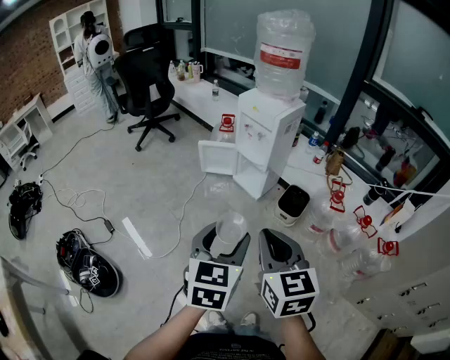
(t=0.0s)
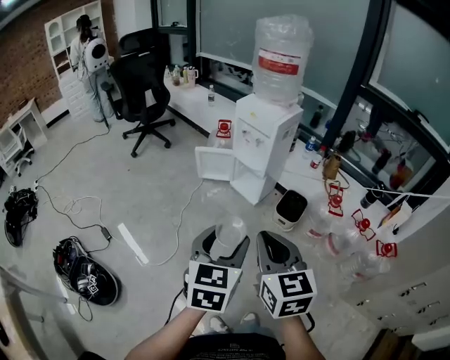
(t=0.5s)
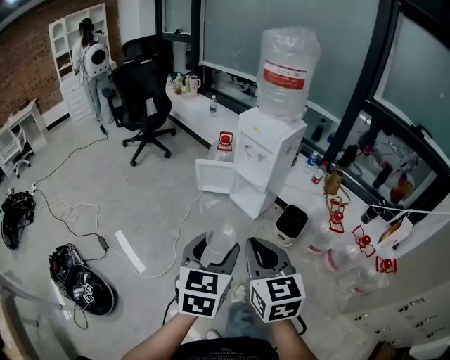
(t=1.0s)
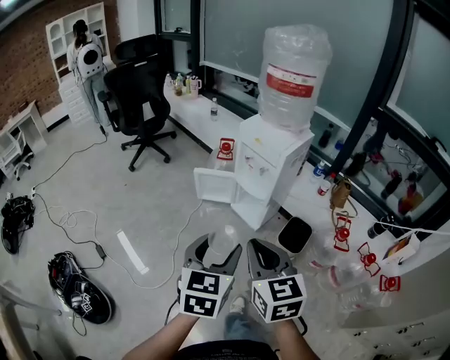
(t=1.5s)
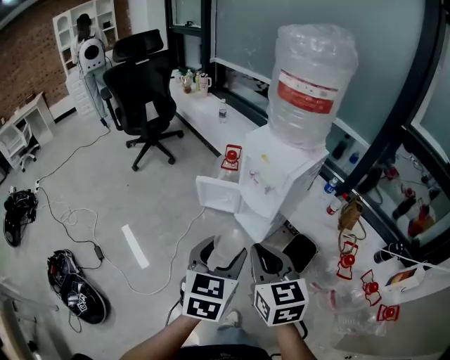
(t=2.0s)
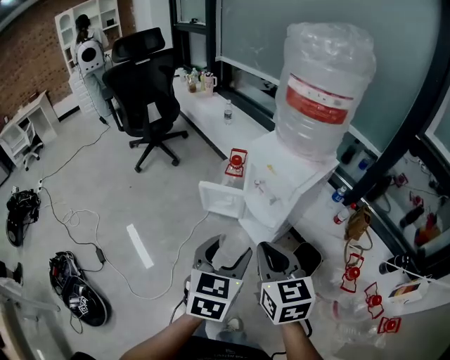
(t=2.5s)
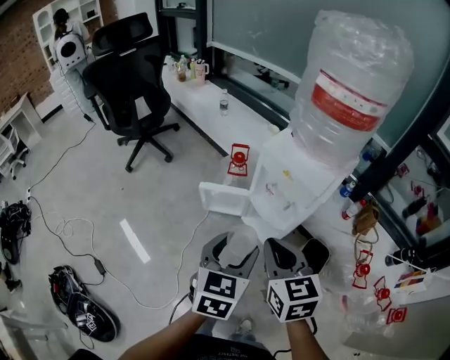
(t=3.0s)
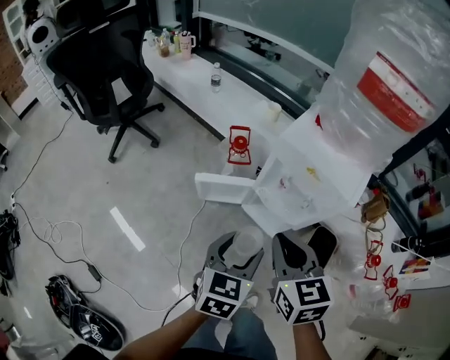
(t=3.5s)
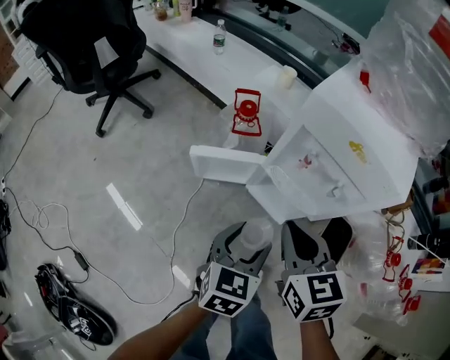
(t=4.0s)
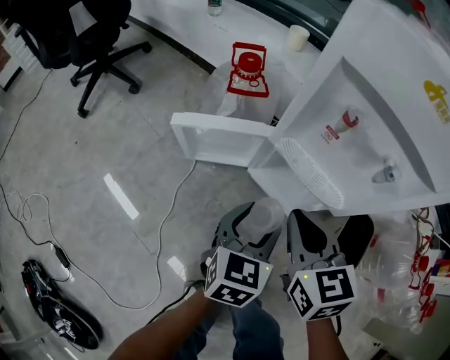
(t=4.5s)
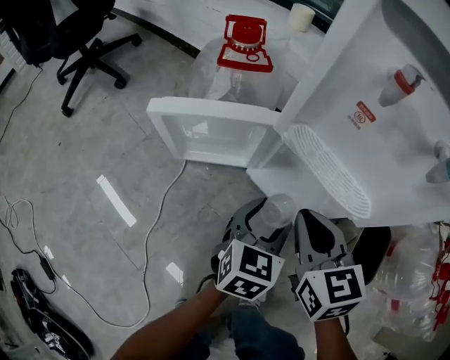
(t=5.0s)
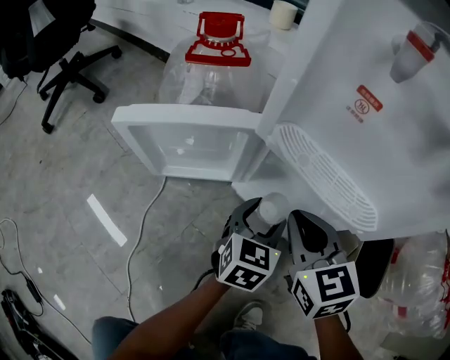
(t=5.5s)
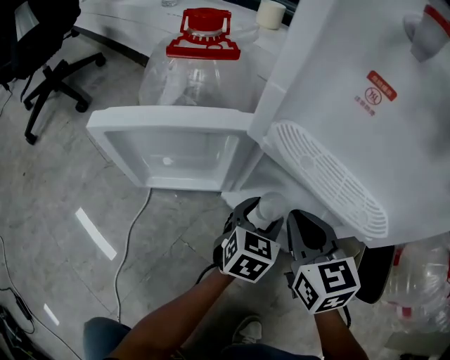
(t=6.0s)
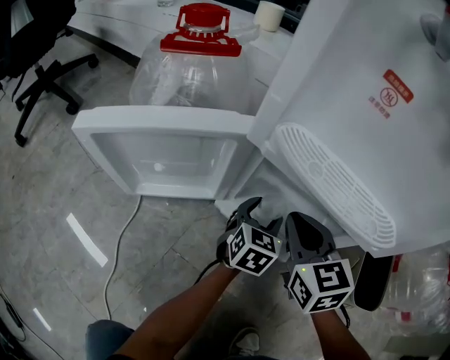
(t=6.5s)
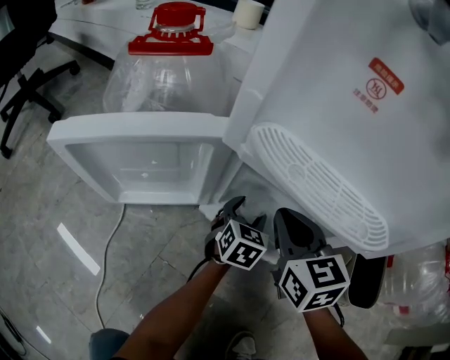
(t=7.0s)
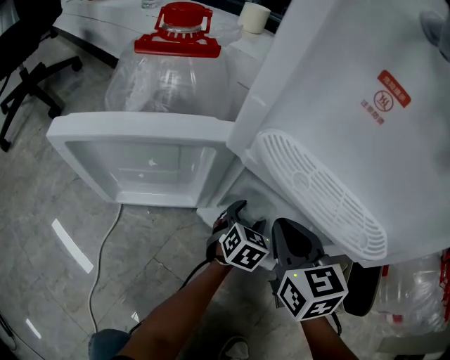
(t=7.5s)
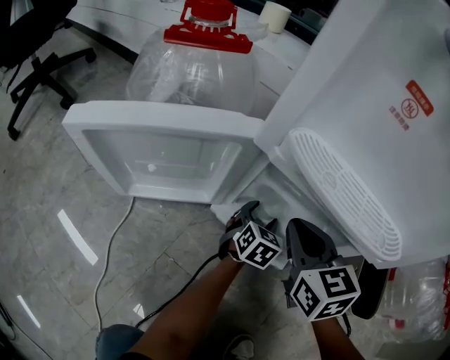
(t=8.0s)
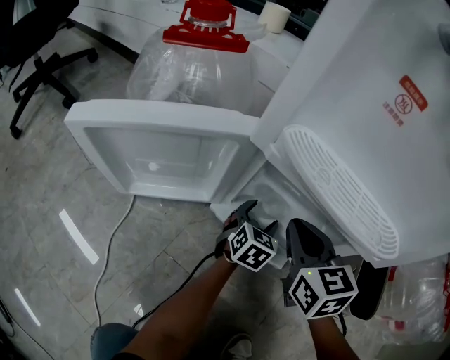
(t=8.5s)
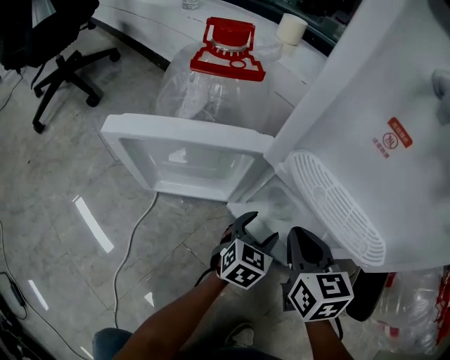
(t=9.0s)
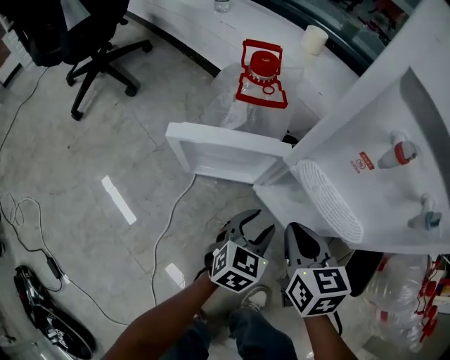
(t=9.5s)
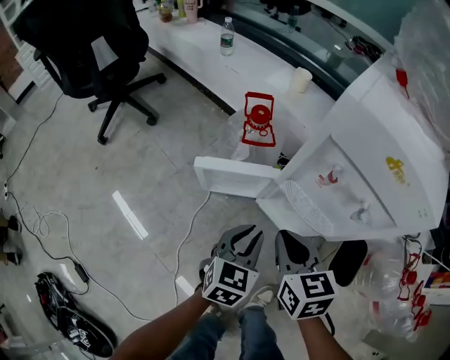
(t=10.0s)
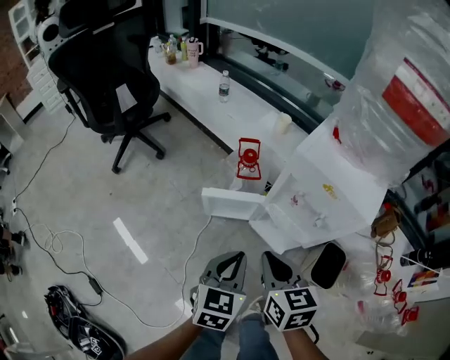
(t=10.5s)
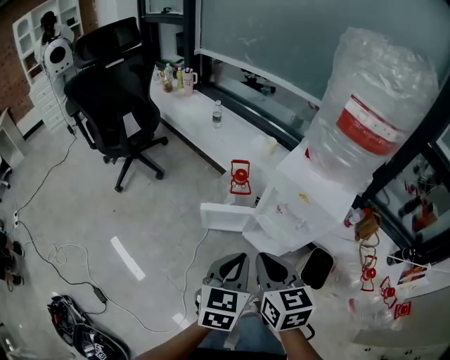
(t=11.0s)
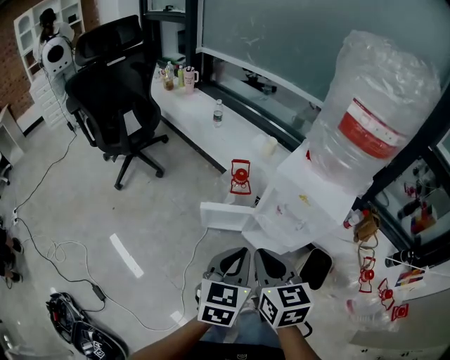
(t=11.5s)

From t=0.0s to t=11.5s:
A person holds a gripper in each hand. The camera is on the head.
From t=0.0s to t=2.0s: The grippers both shift forward by some 30 cm.
From t=2.0s to t=4.0s: The right gripper travels forward and downward by roughly 35 cm, while the left gripper moves downward and forward, approximately 40 cm, and rotates approximately 20 degrees.
From t=4.0s to t=6.0s: The right gripper goes roughly 40 cm downward; the left gripper moves downward and forward, some 50 cm.
From t=6.0s to t=7.5s: The left gripper moves downward and forward, roughly 10 cm.
From t=7.5s to t=9.5s: The left gripper moves upward, backward and to the left, some 30 cm. Meanwhile the right gripper is displaced upward, backward and to the left by approximately 20 cm.
From t=9.5s to t=11.5s: The grippers both shift upward by roughly 50 cm. The left gripper closes its fingers.

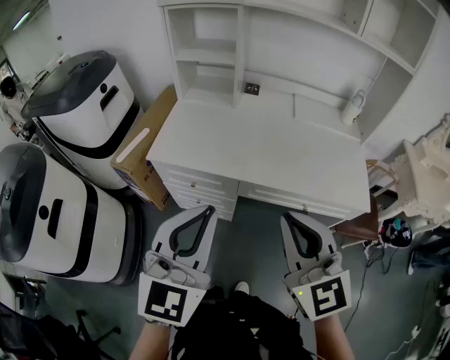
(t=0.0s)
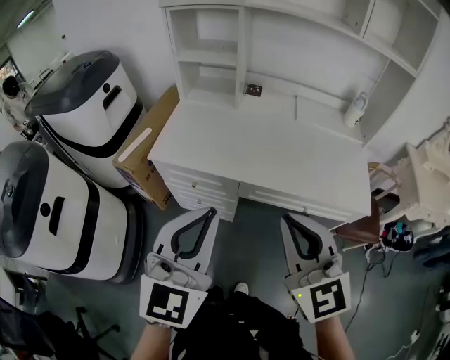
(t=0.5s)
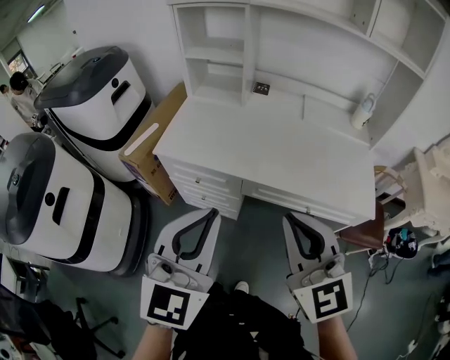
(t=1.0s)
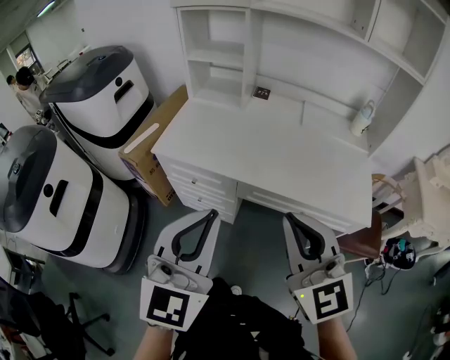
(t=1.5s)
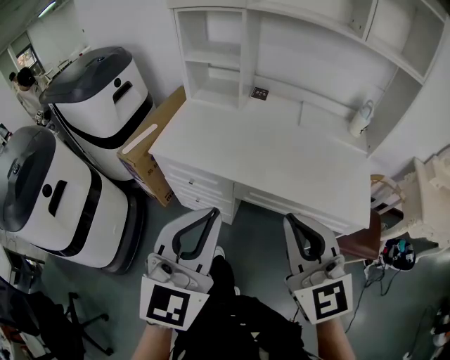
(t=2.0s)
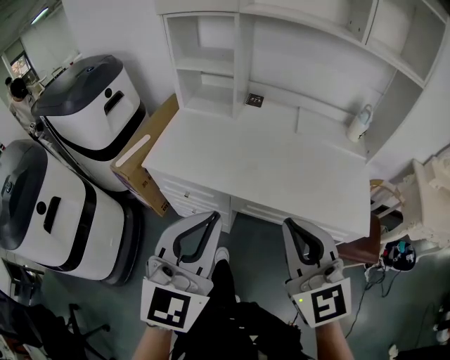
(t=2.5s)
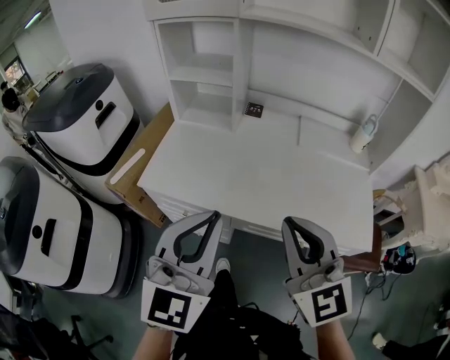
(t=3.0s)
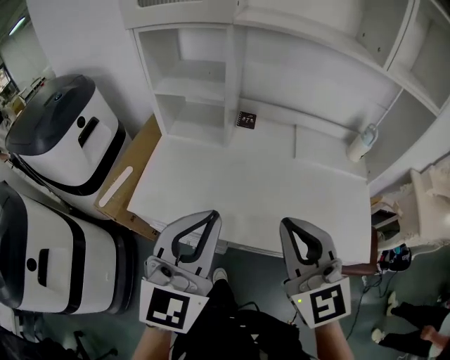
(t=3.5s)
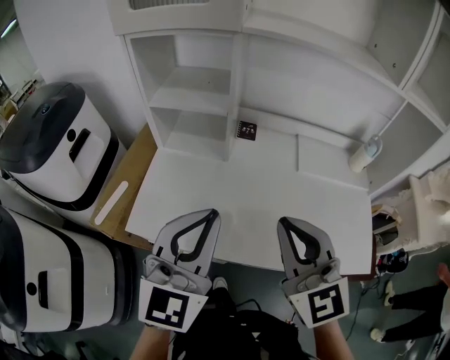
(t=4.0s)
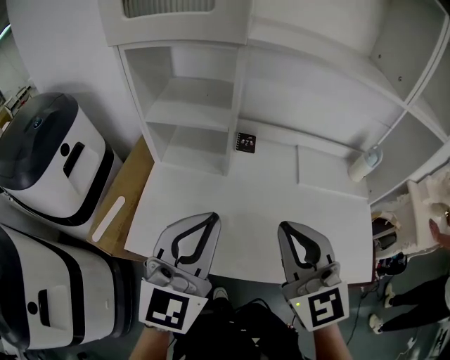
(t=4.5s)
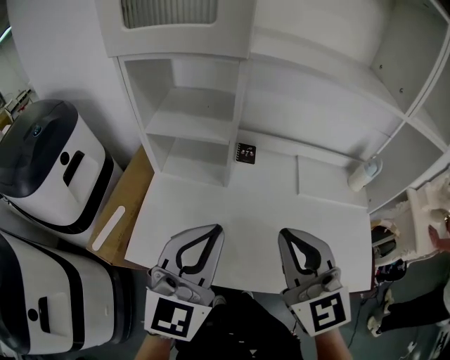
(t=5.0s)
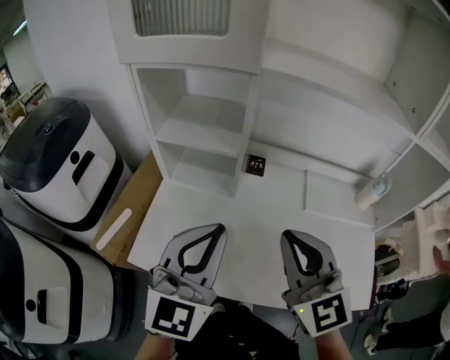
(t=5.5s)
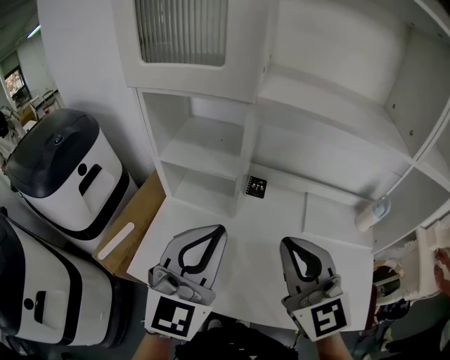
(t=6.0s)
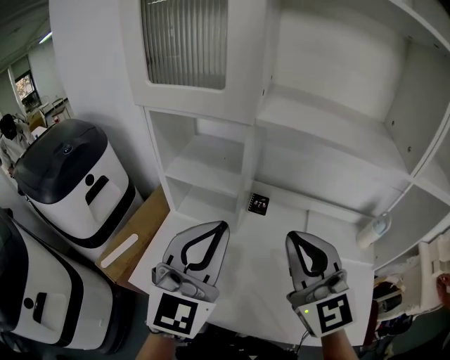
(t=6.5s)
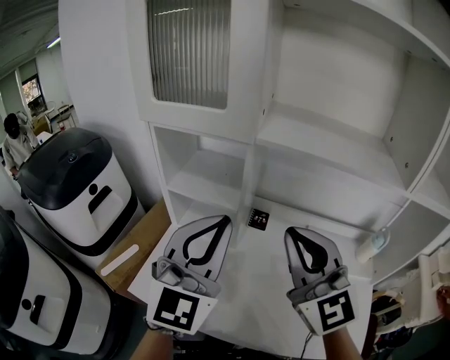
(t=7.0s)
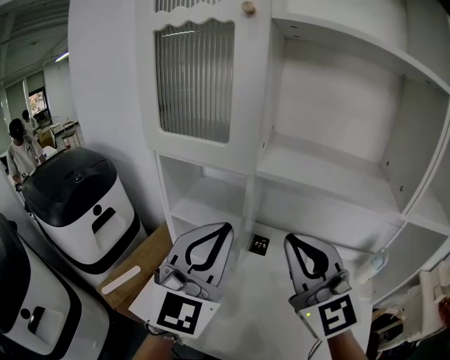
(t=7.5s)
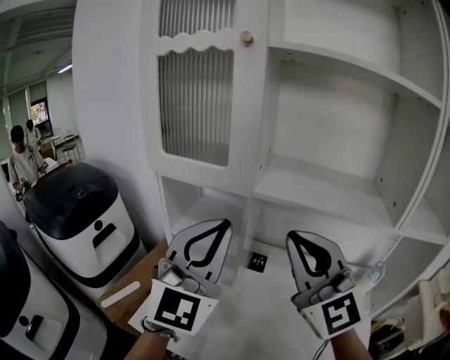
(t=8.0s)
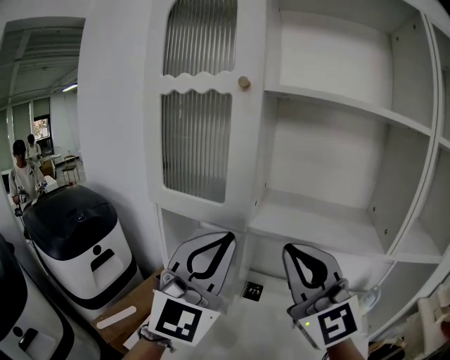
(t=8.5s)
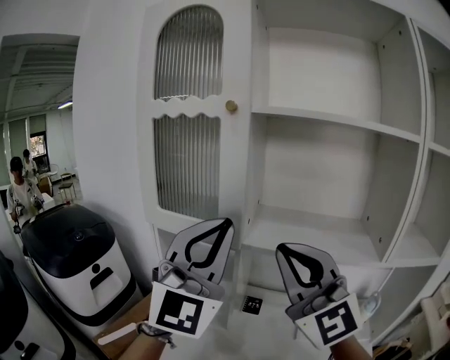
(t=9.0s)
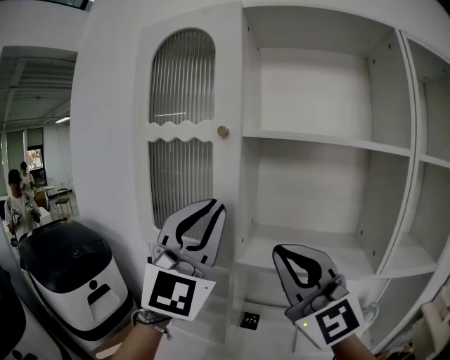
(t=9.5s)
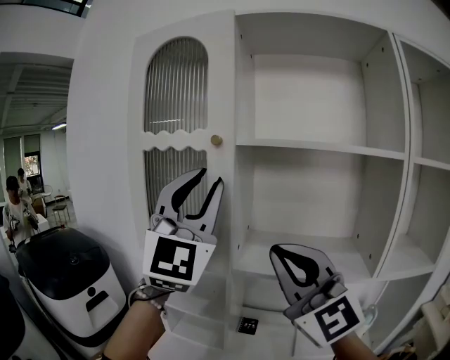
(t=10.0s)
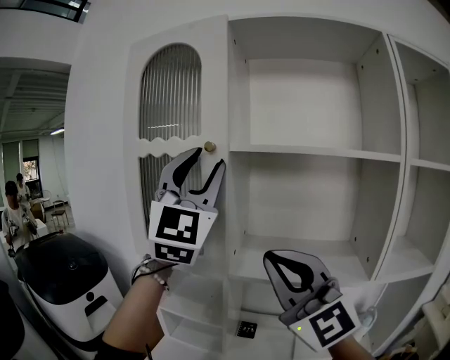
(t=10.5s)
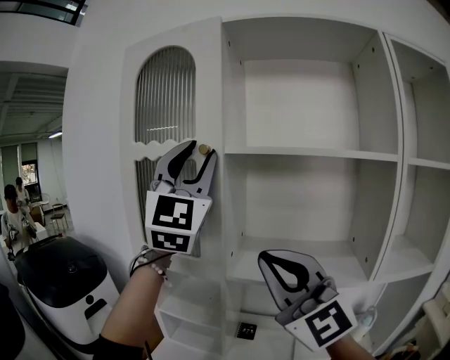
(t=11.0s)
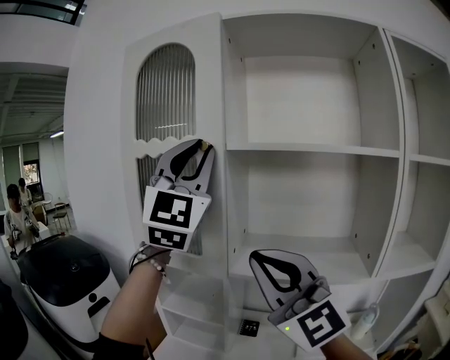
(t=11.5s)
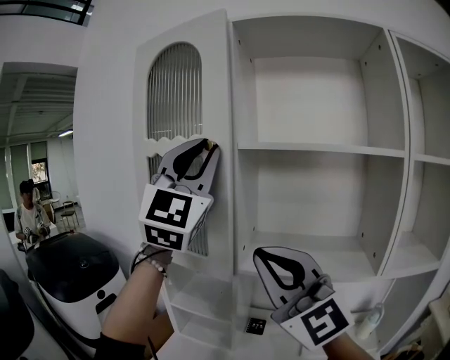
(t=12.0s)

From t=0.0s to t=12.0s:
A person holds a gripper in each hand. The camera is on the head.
From t=0.0s to t=2.0s: The two grippers go some 5 cm to the right.
From t=2.0s to t=4.0s: The grippers both shift forward by some 30 cm.
From t=4.0s to t=6.0s: Both grippers move forward, about 10 cm.
From t=6.0s to t=8.0s: The left gripper moves upward and forward, roughly 15 cm, while the right gripper goes approximately 15 cm upward, and rotates roughly 20 degrees.
From t=8.0s to t=10.0s: The left gripper goes about 25 cm upward, and opens its fingers, while the right gripper travels upward by roughly 10 cm.
From t=10.0s to t=12.0s: The left gripper goes about 5 cm upward.

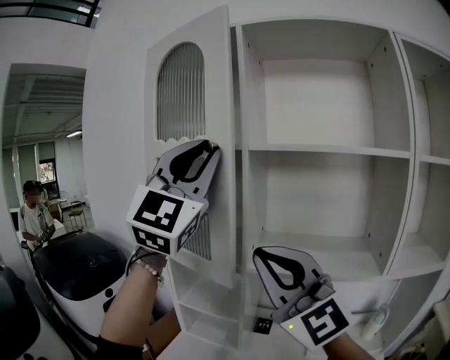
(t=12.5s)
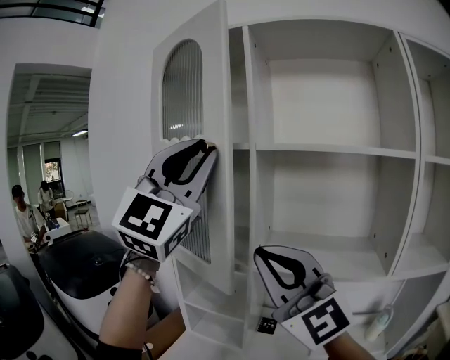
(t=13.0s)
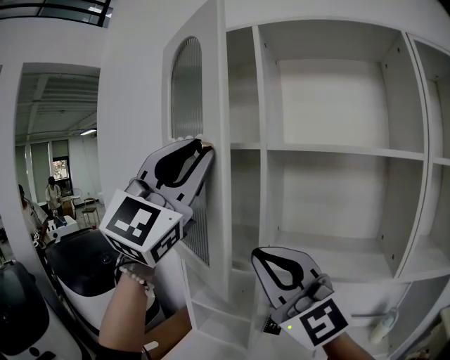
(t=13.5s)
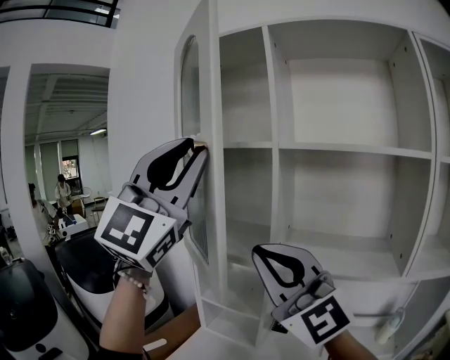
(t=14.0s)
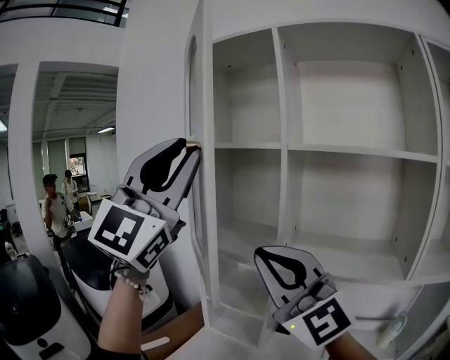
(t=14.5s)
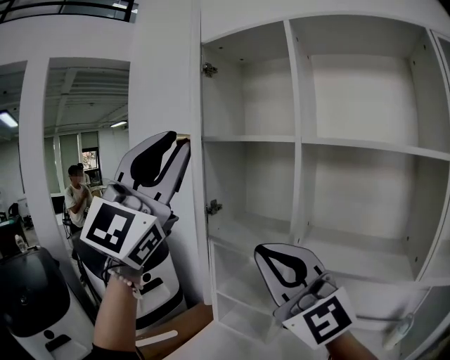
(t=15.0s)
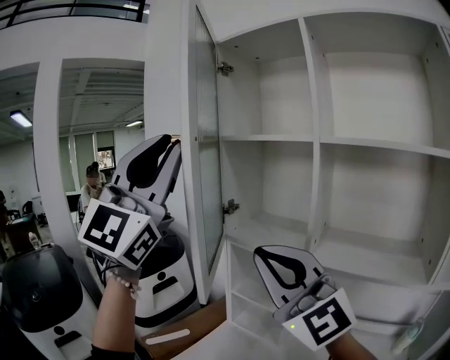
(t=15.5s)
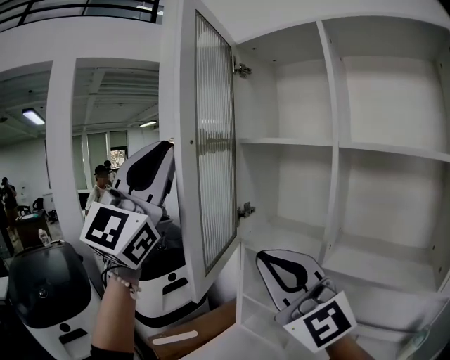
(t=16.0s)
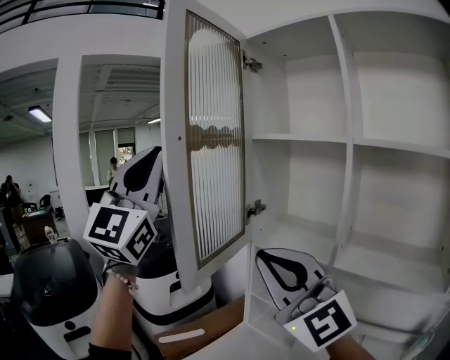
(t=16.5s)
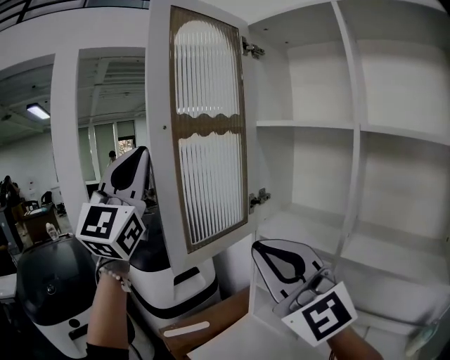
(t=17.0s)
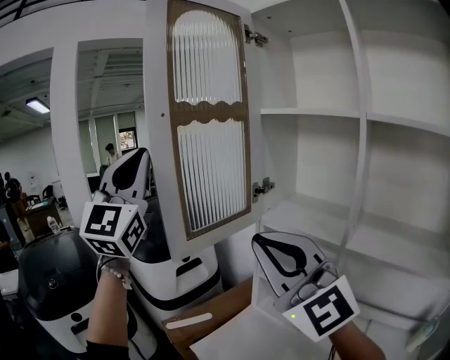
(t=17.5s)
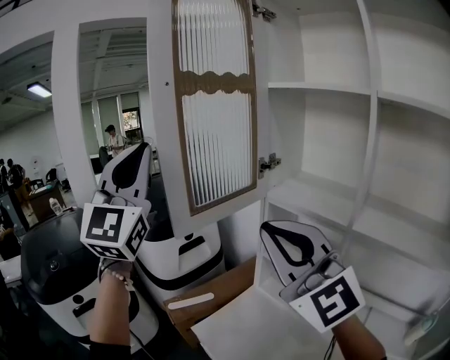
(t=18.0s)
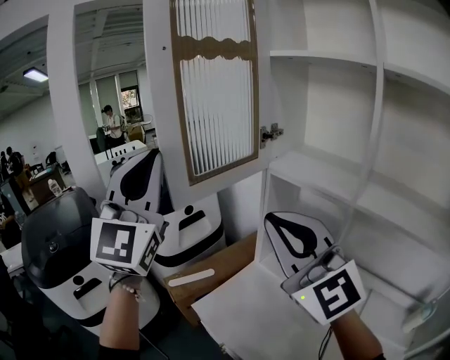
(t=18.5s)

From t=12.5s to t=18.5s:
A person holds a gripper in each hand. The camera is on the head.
From t=12.5s to t=14.5s: The left gripper heads to the left and backward, covering approximately 15 cm, while the right gripper shifts about 5 cm to the left.
From t=14.5s to t=16.5s: The right gripper is displaced to the left by some 10 cm, while the left gripper goes some 15 cm to the left, swivels about 20 degrees, and closes up.
From t=16.5s to t=18.5s: The left gripper moves downward, roughly 15 cm. The right gripper goes some 10 cm downward.
